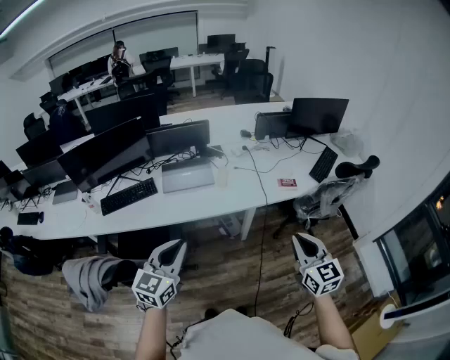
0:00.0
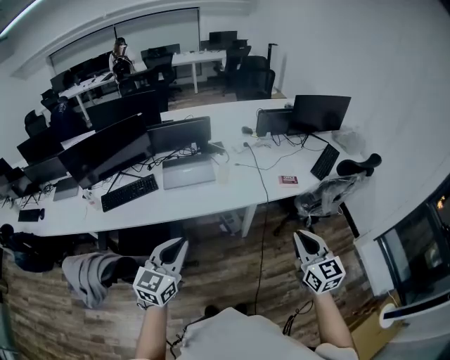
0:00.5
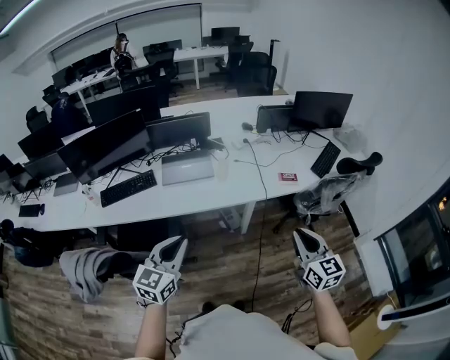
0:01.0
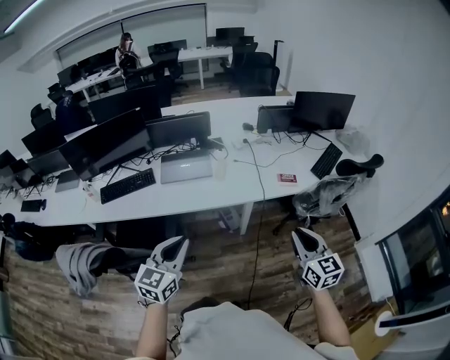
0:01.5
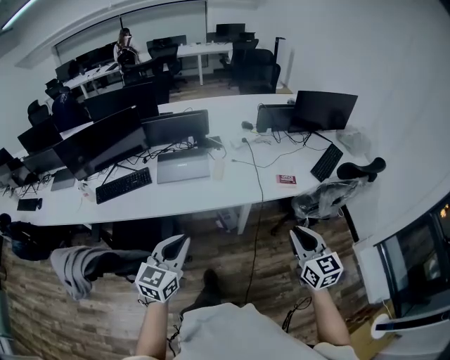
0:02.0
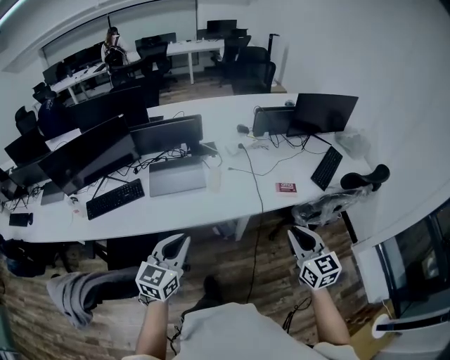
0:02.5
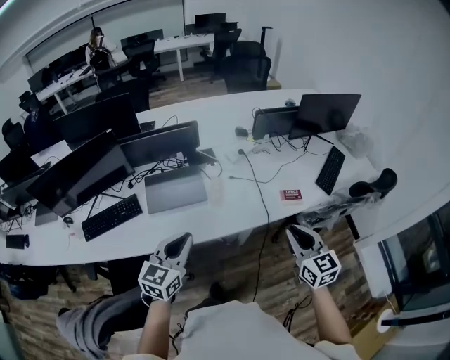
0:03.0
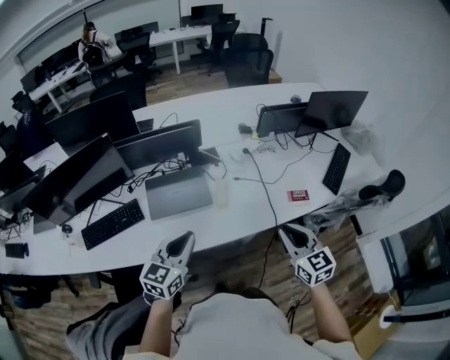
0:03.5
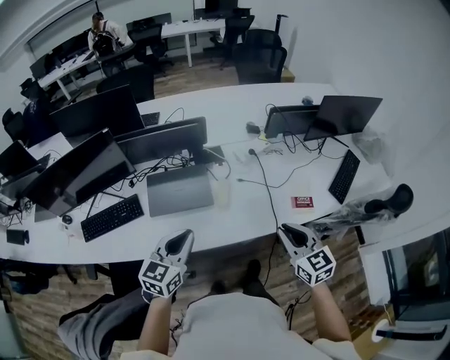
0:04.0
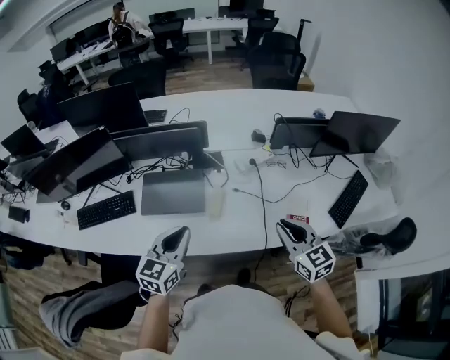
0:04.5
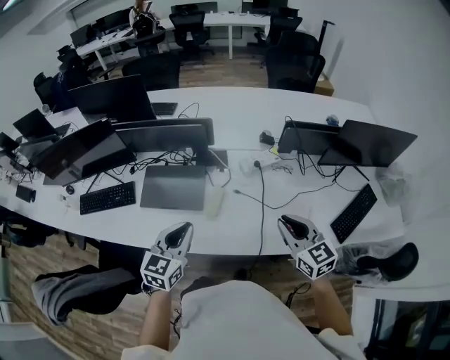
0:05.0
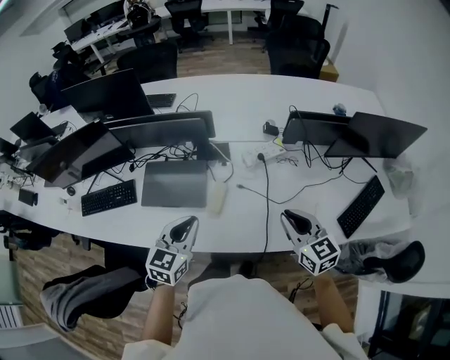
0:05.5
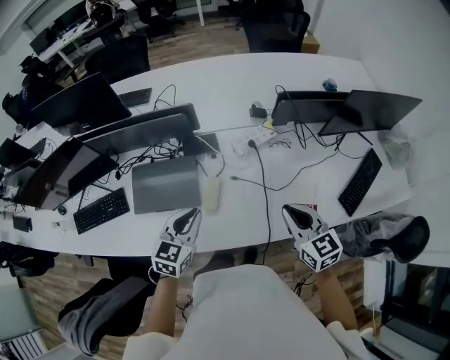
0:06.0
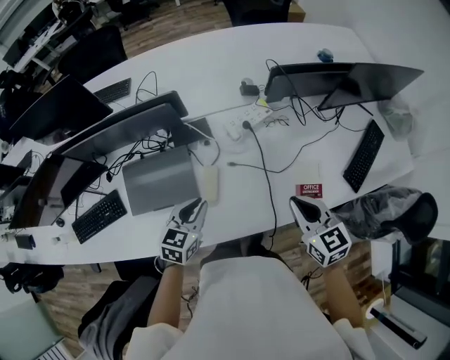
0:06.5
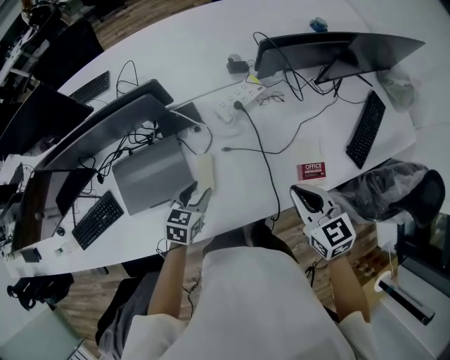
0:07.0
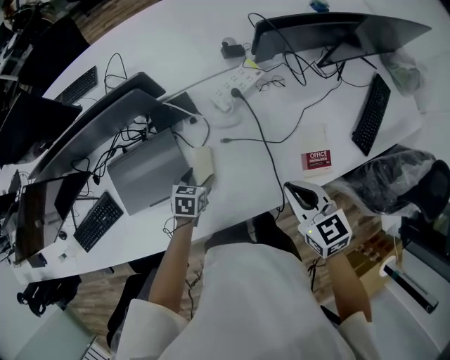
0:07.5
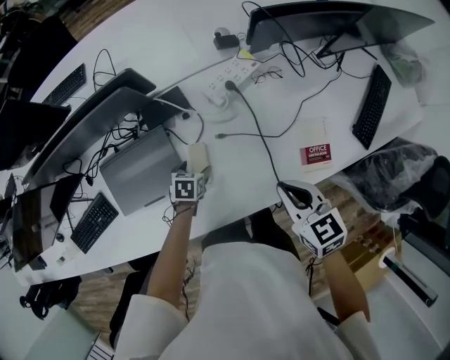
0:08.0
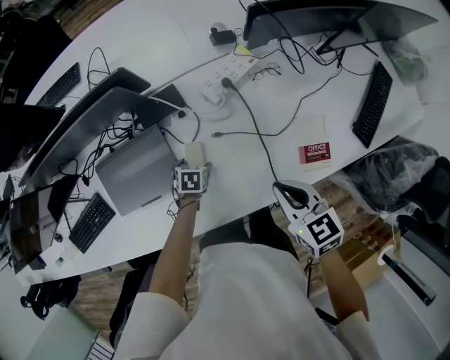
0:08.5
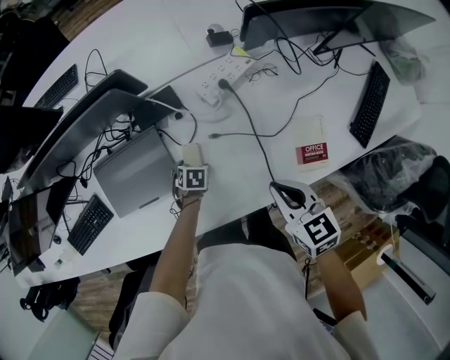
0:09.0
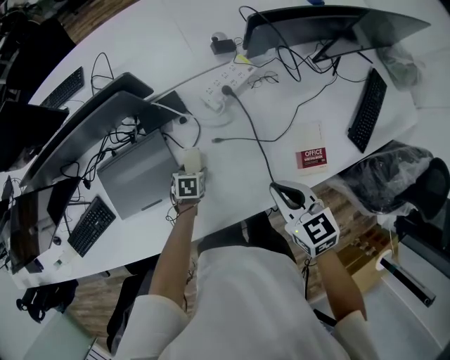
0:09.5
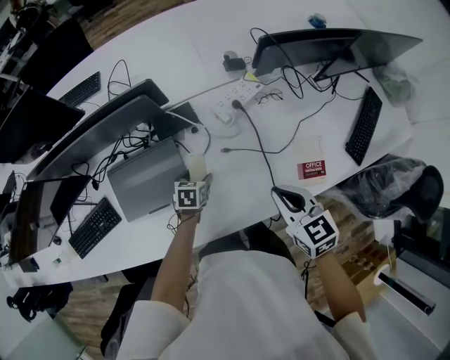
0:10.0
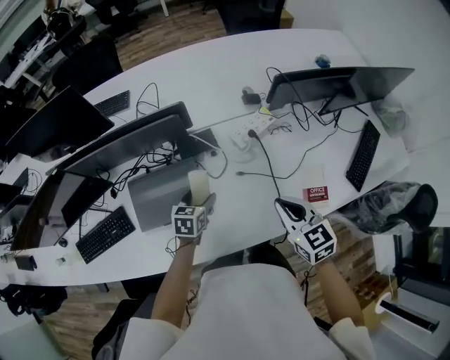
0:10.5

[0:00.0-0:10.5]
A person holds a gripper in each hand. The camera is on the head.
0:00.0 to 0:02.0: The left gripper is displaced to the right by approximately 10 cm. Meanwhile the right gripper travels to the right and forward by roughly 10 cm.
0:02.0 to 0:04.0: Both grippers travel together forward, about 30 cm.
0:04.0 to 0:06.5: The left gripper travels forward, downward and to the right by some 30 cm; the right gripper travels forward and to the right by about 25 cm.
0:06.5 to 0:08.5: The left gripper moves downward, approximately 30 cm, tilts its fingers roughly 40 degrees downward, and opens. The right gripper shifts roughly 10 cm downward.
0:08.5 to 0:10.5: The right gripper travels upward by approximately 10 cm. The left gripper moves upward, roughly 20 cm, and swivels some 30 degrees.

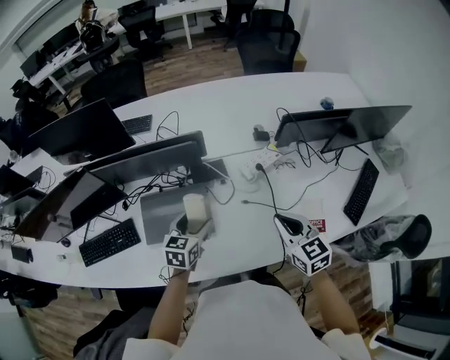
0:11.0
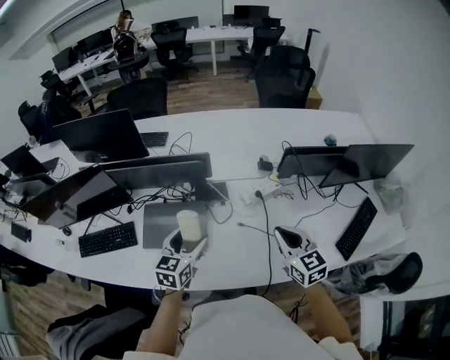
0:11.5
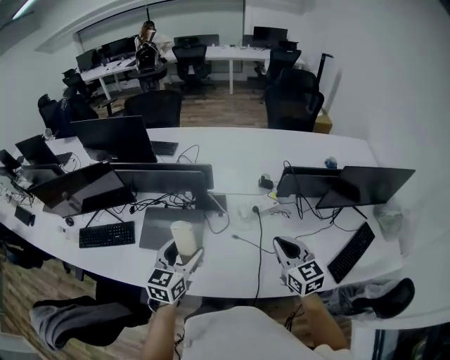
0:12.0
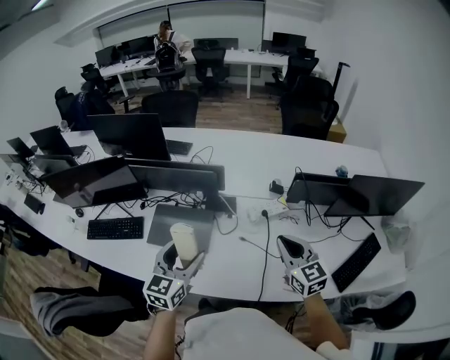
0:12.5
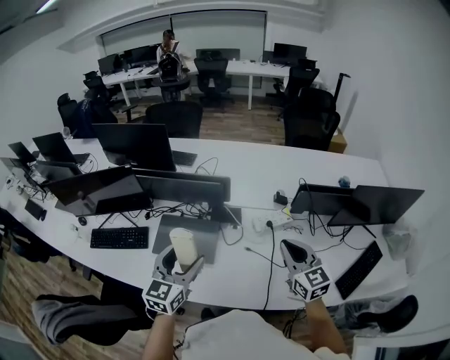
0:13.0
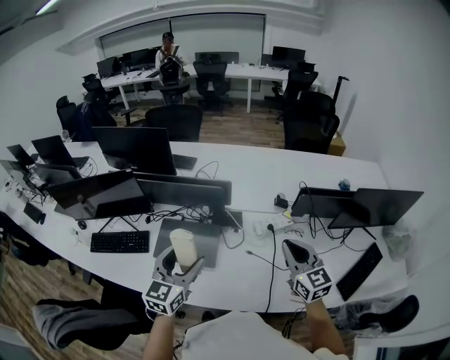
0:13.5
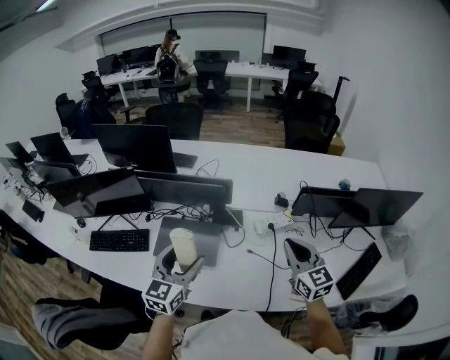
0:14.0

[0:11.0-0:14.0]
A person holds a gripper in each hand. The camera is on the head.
0:11.0 to 0:12.5: The left gripper heads upward and backward, covering roughly 20 cm, and rotates about 30 degrees, while the right gripper heads upward and to the right, covering approximately 10 cm.
0:12.5 to 0:14.0: The left gripper moves to the left, approximately 5 cm. Meanwhile the right gripper moves approximately 5 cm.

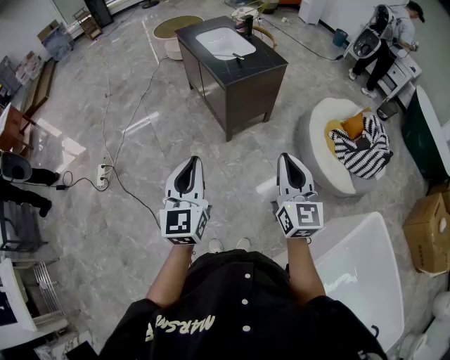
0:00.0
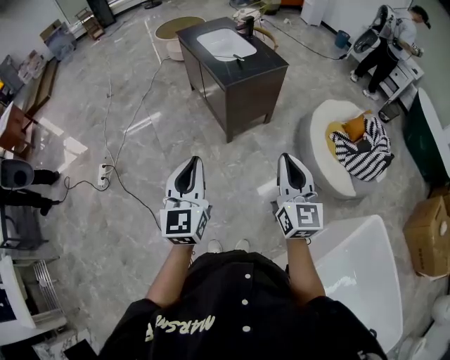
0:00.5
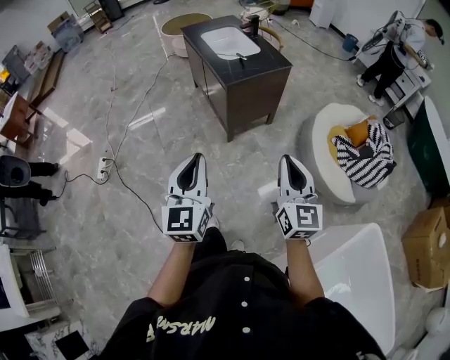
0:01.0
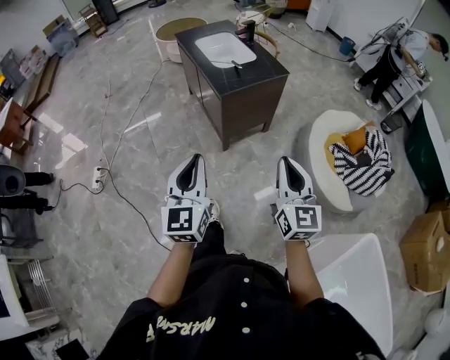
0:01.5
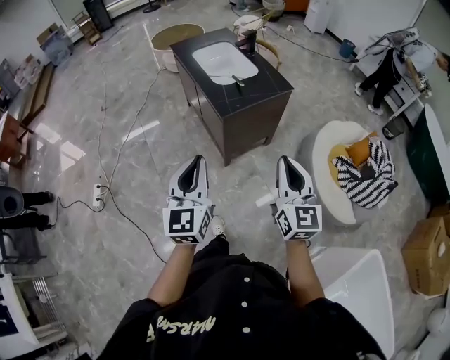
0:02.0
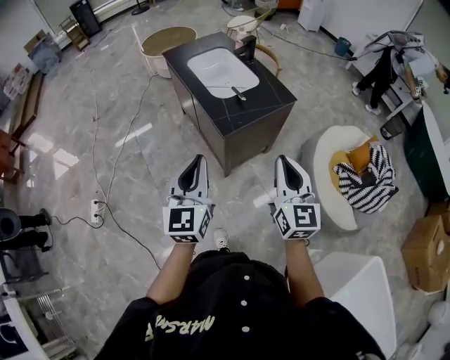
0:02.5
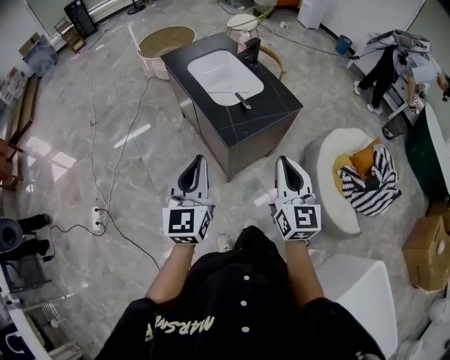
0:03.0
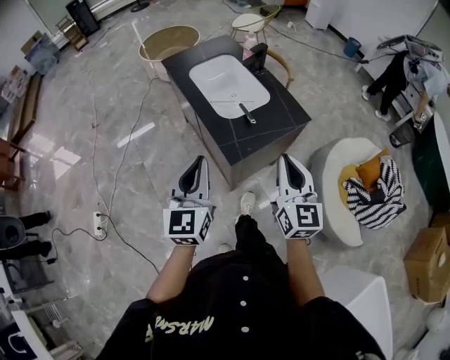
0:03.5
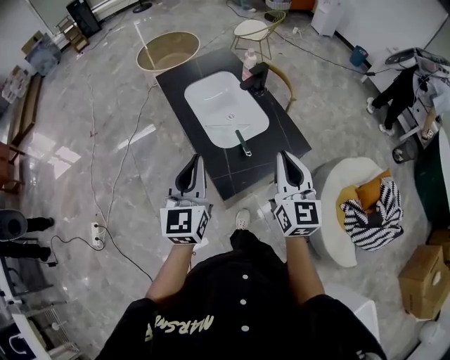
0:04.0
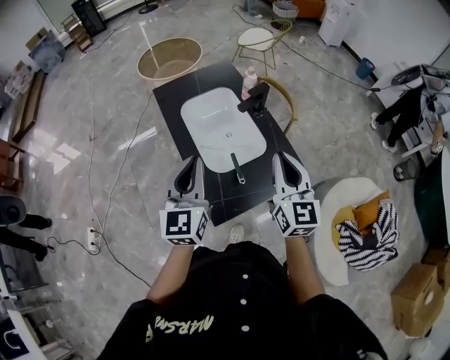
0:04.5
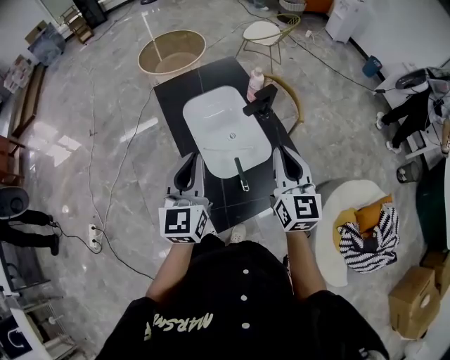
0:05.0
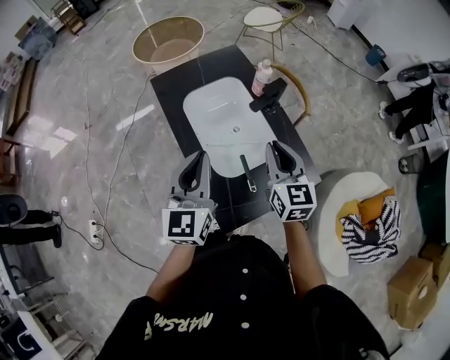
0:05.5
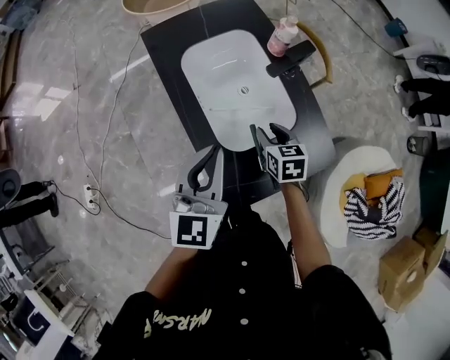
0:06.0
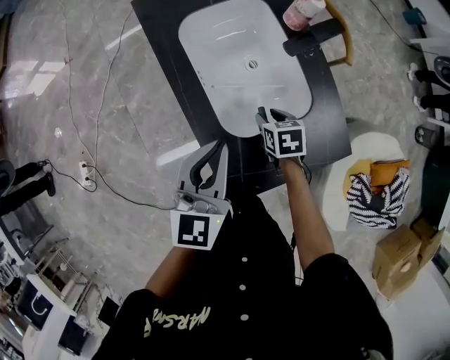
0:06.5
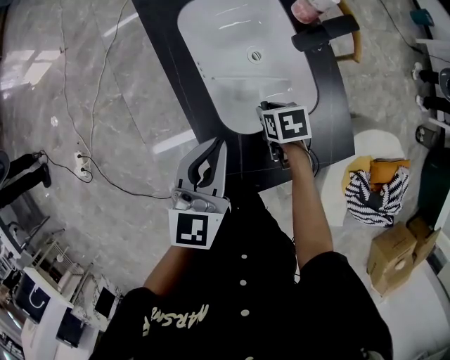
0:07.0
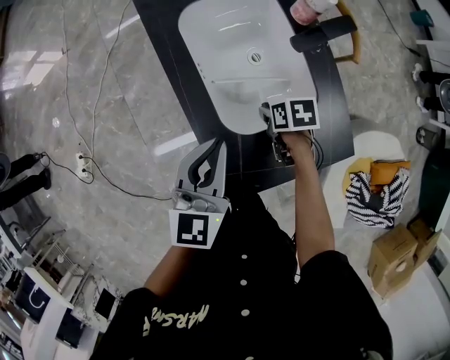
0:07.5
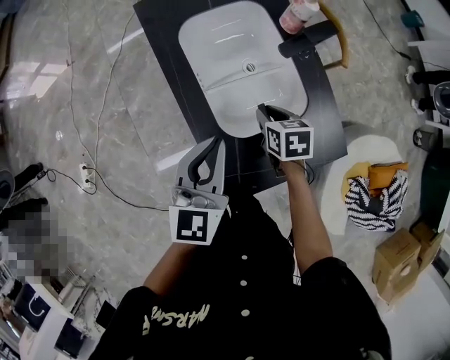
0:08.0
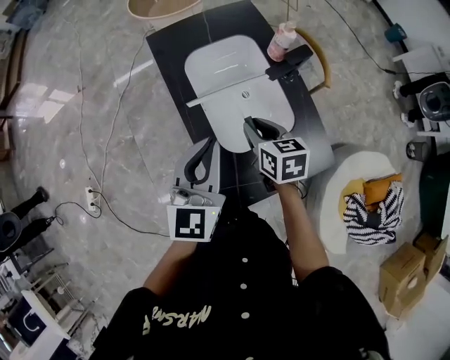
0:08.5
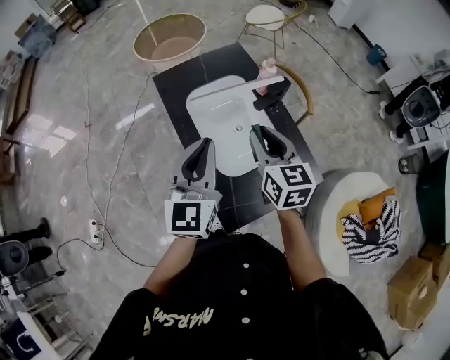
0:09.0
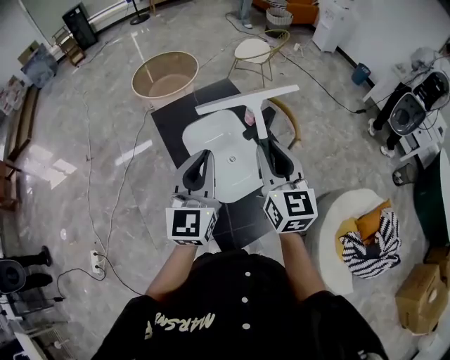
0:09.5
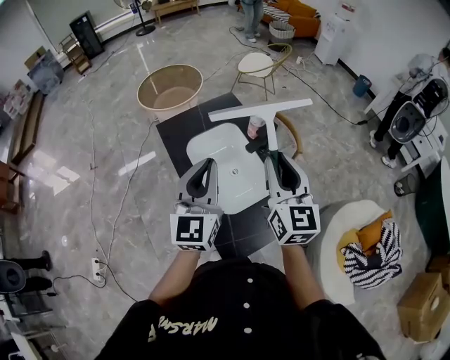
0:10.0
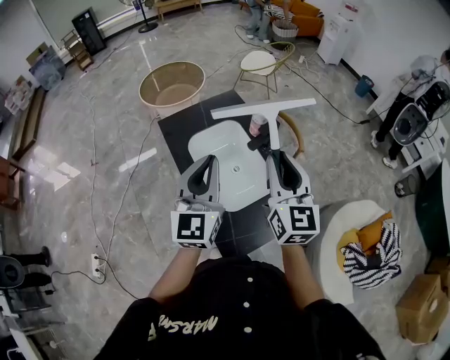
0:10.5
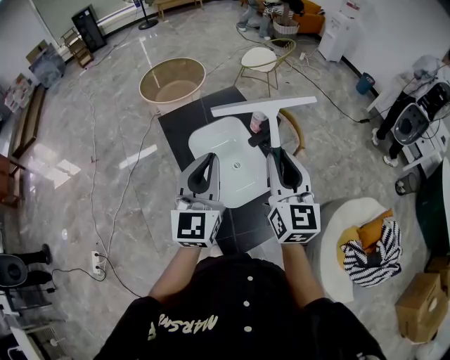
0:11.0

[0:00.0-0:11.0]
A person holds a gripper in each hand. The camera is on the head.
0:00.0 to 0:02.0: The two grippers go some 20 cm forward.
0:02.0 to 0:03.5: Both grippers move forward, some 30 cm.
0:03.5 to 0:05.5: Both grippers travel together forward, about 35 cm.
0:05.5 to 0:07.5: The right gripper goes roughly 30 cm downward, and points its fingers about 50 degrees further downward, while the left gripper goes approximately 15 cm downward.
0:07.5 to 0:09.0: The left gripper shifts about 20 cm upward, and turns by about 20 degrees, while the right gripper moves upward, approximately 35 cm, and angles its fingers upward, by some 50 degrees.
0:09.0 to 0:11.0: The left gripper travels upward by roughly 5 cm; the right gripper travels upward and to the right by approximately 10 cm, and turns by about 20 degrees.

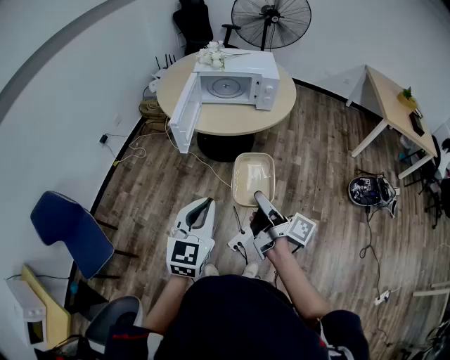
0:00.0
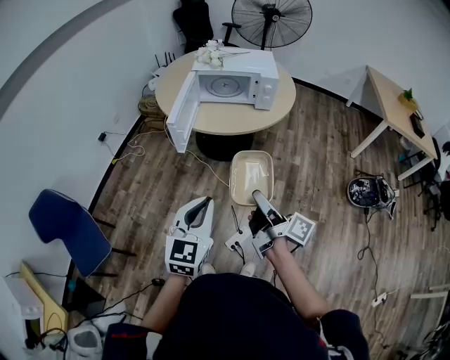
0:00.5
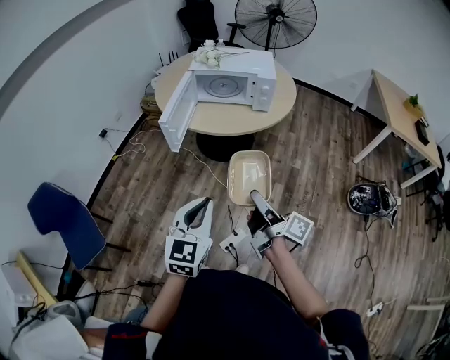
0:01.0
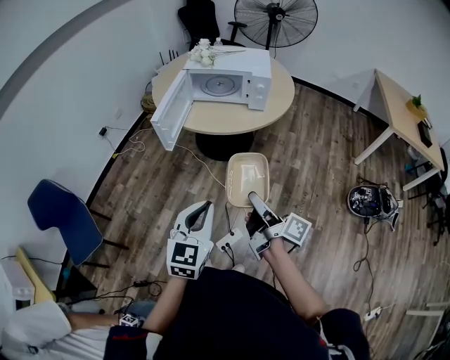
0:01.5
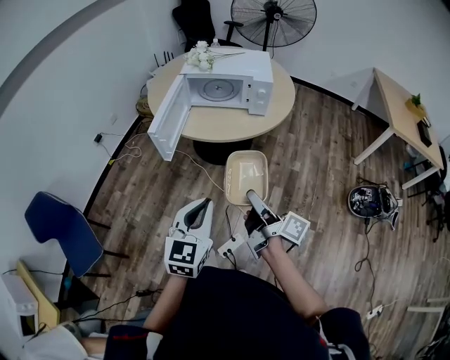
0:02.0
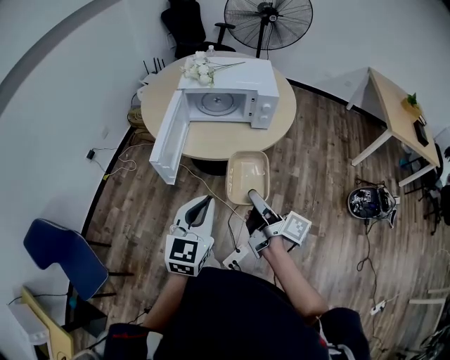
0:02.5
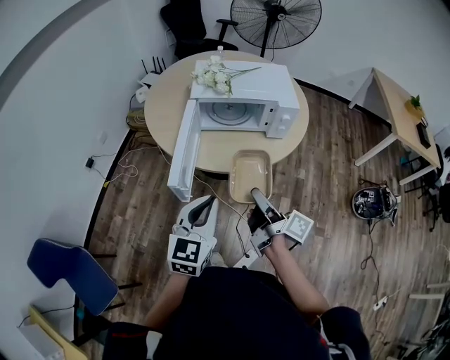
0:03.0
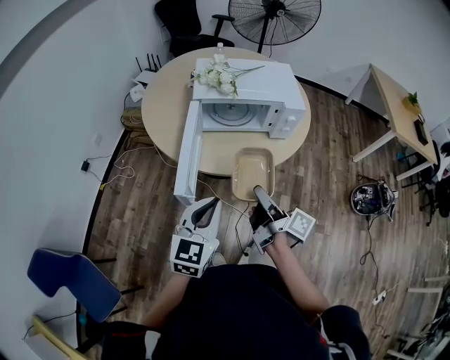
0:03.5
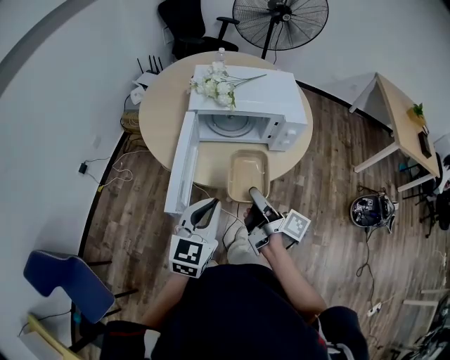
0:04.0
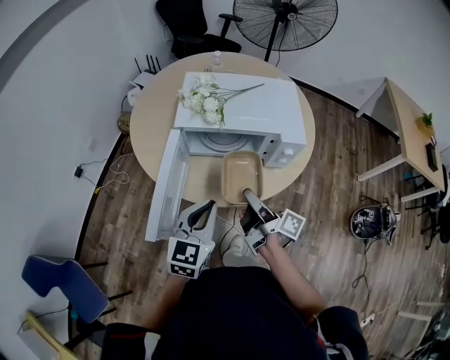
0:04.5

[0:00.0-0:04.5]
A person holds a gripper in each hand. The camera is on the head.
0:00.0 to 0:02.0: The right gripper moves forward and to the right, roughly 10 cm. The left gripper is displaced to the right and forward by some 10 cm.
0:02.0 to 0:04.5: The grippers both shift forward by some 40 cm.
